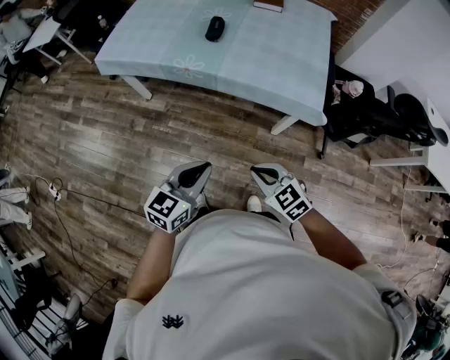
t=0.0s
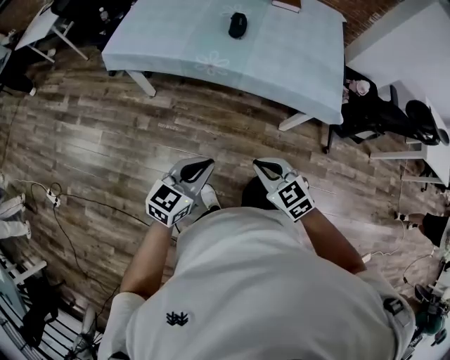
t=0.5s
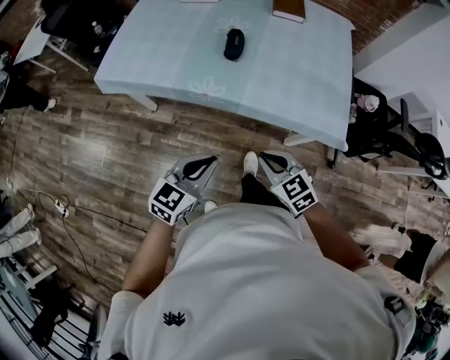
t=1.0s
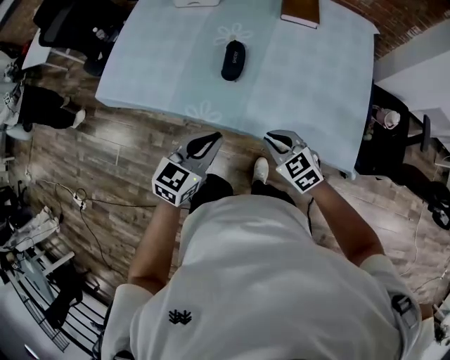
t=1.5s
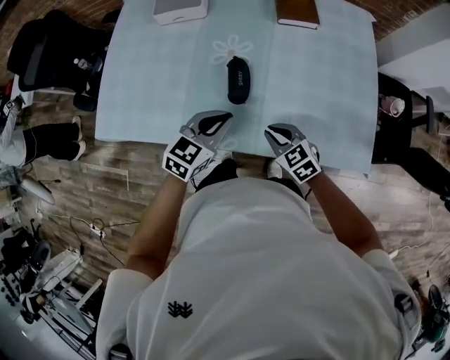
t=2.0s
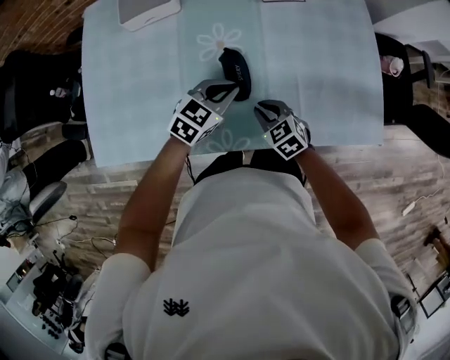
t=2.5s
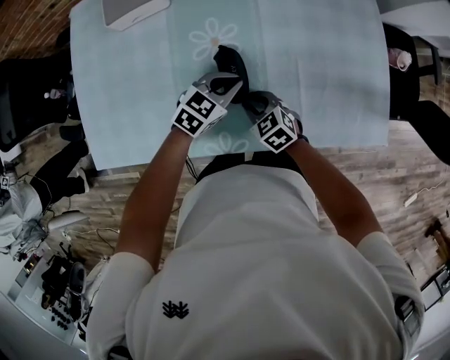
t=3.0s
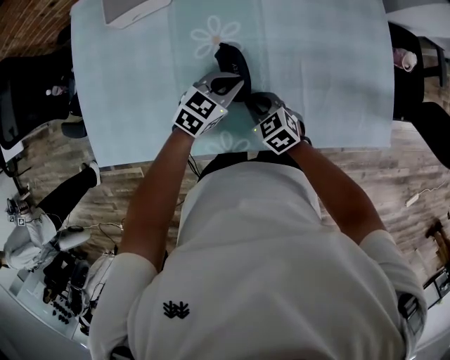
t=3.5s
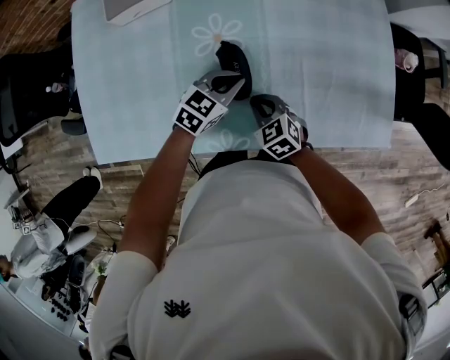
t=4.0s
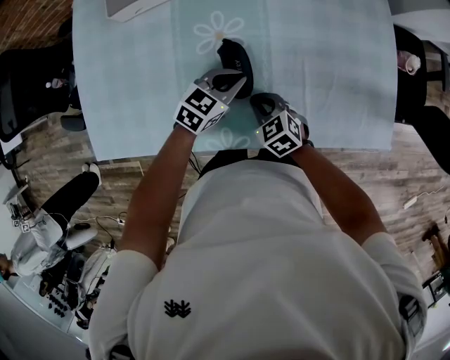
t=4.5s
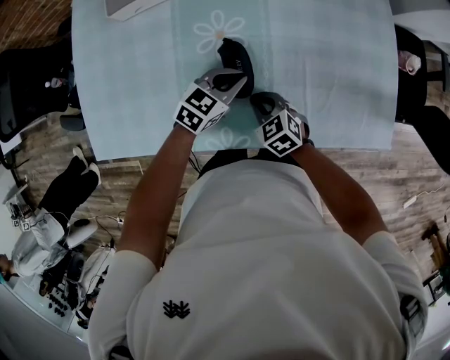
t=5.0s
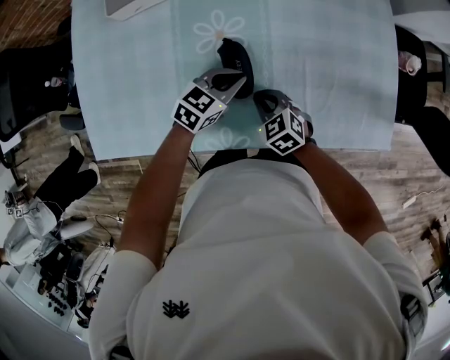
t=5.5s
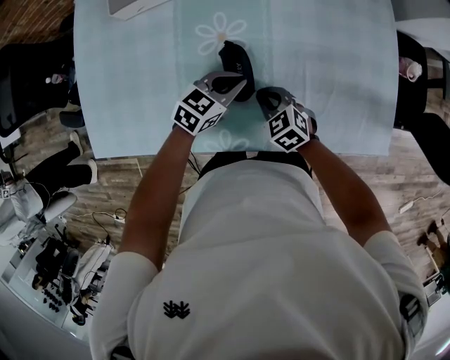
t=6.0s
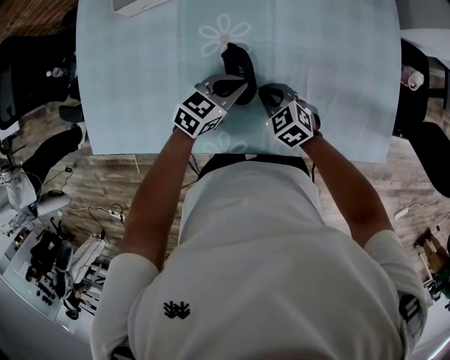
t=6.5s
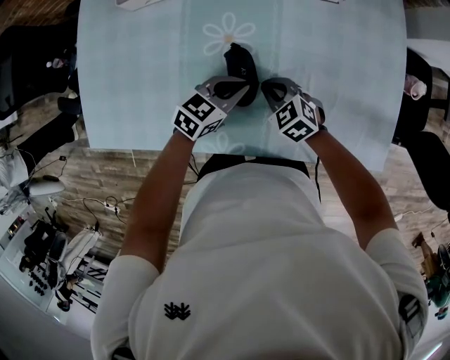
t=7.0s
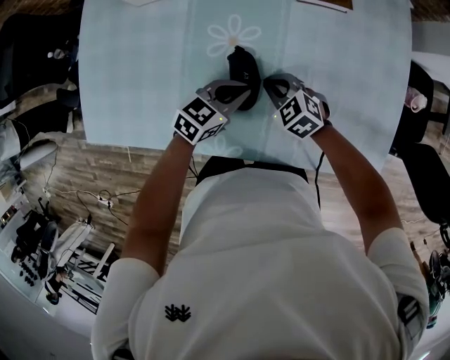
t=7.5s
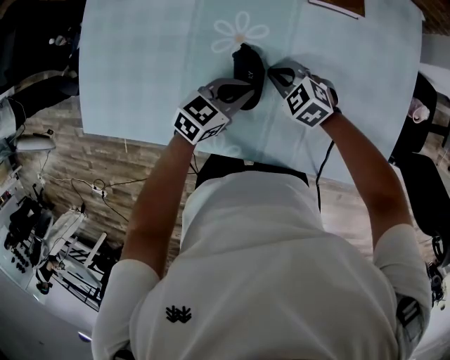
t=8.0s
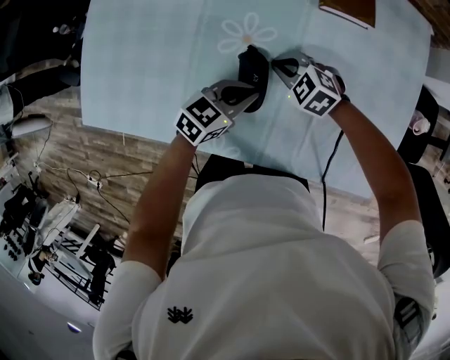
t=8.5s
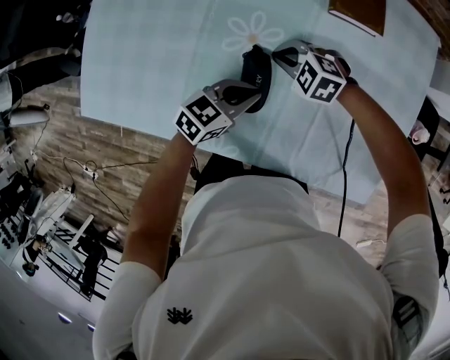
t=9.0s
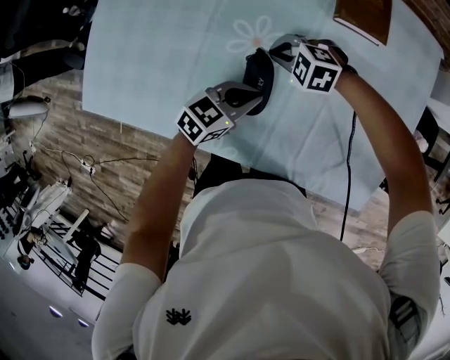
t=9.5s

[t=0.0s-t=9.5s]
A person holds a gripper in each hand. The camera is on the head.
t=0.0s to t=2.0s: The two grippers travel together, forward, approximately 50 cm. The left gripper turns by some 20 degrees.
t=2.0s to t=4.0s: The right gripper is displaced downward, forward and to the left by about 15 cm; the left gripper is displaced downward and forward by some 15 cm, and swivels some 20 degrees.
t=4.0s to t=5.5s: Both grippers stay about where they are.
t=5.5s to t=7.5s: The right gripper moves forward, some 10 cm.
t=7.5s to t=9.5s: The right gripper changes place by approximately 10 cm, and swivels approximately 40 degrees.

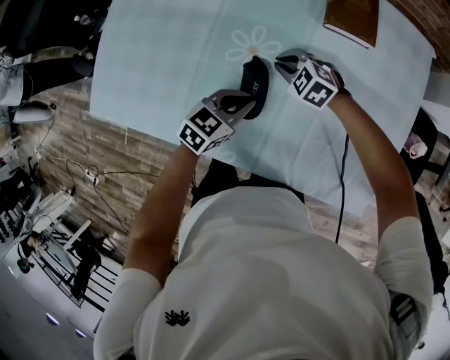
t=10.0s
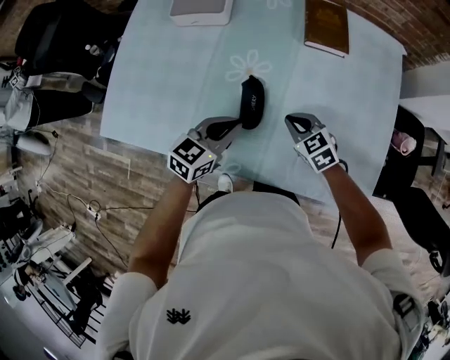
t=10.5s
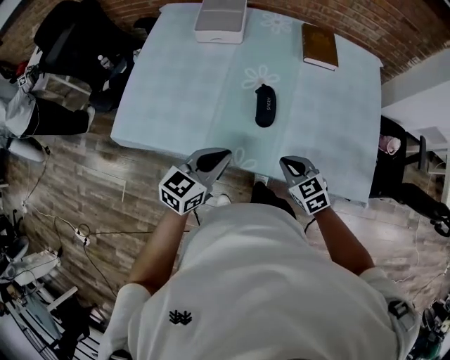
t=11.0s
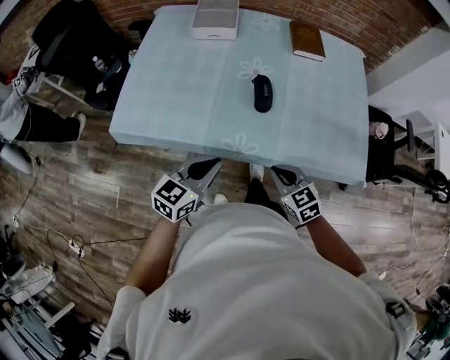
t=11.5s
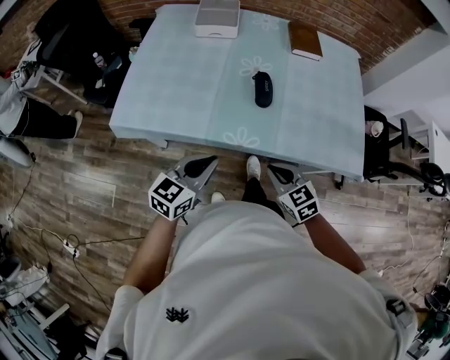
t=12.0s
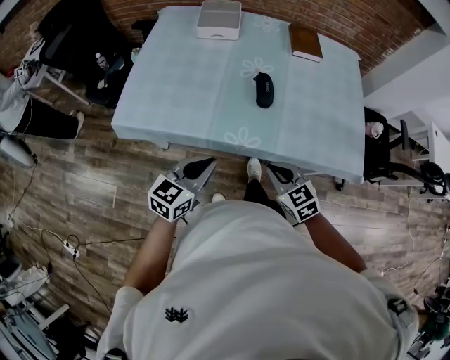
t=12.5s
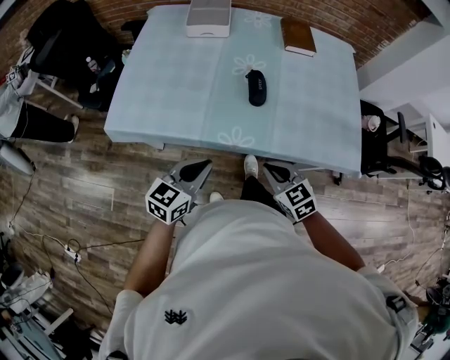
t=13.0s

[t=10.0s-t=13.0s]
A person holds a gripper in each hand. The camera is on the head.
t=10.0s to t=11.5s: The left gripper moves backward, to the left and upward, some 35 cm; the right gripper heads backward, covering about 40 cm, and rotates roughly 40 degrees.
t=11.5s to t=13.0s: The grippers move only a little.

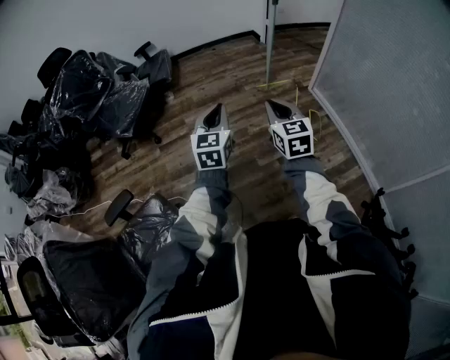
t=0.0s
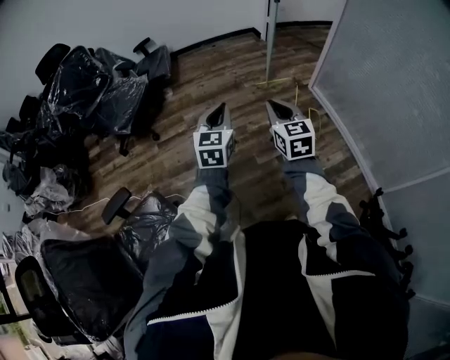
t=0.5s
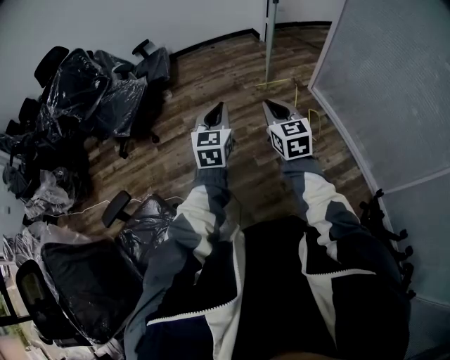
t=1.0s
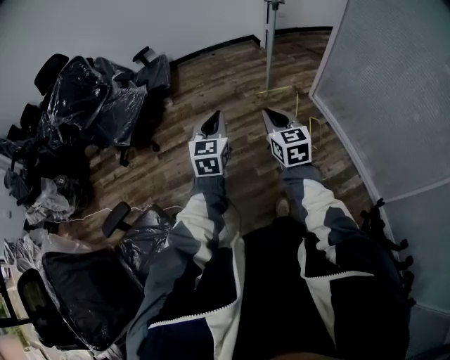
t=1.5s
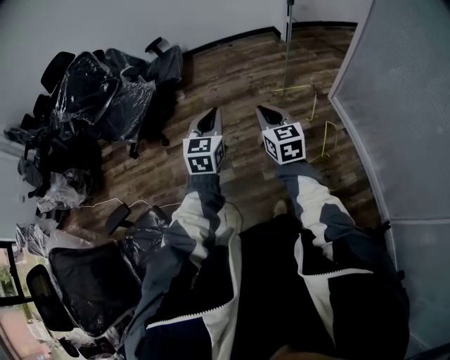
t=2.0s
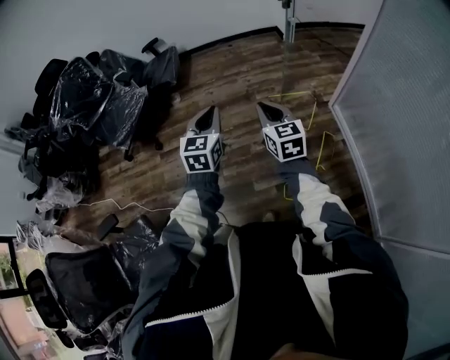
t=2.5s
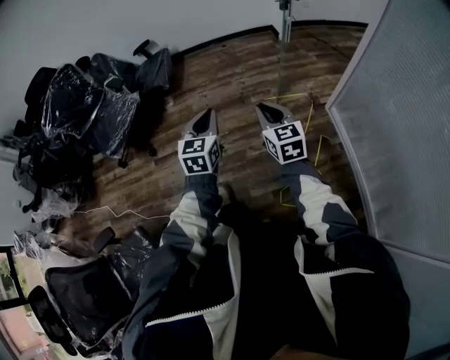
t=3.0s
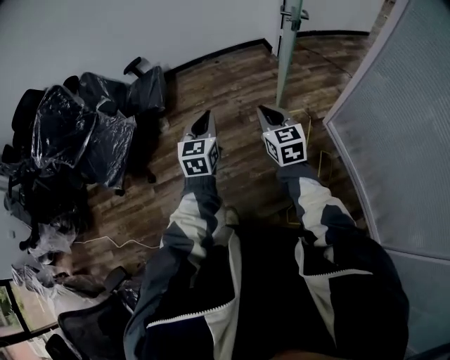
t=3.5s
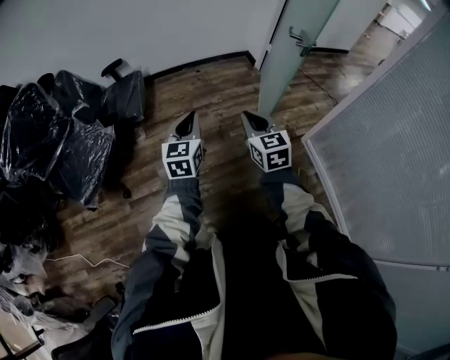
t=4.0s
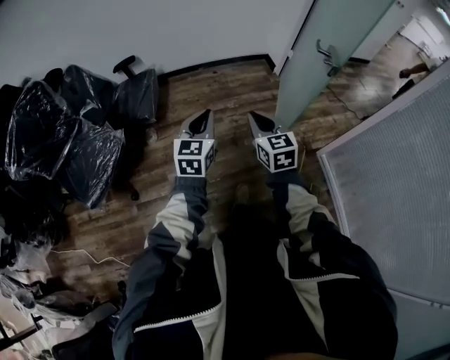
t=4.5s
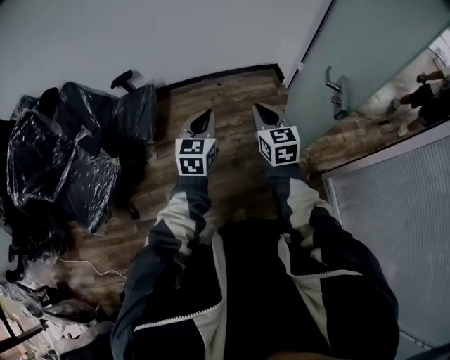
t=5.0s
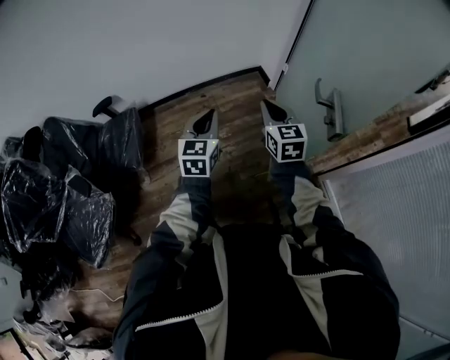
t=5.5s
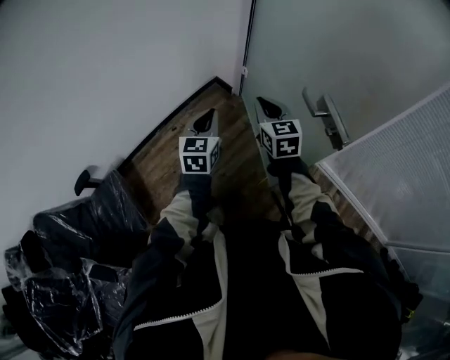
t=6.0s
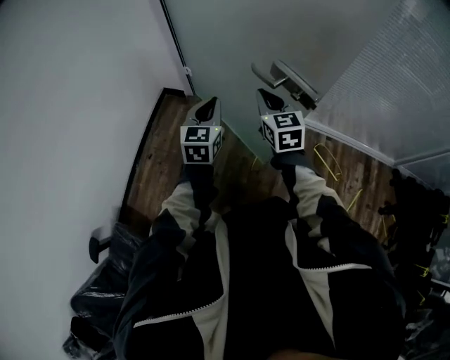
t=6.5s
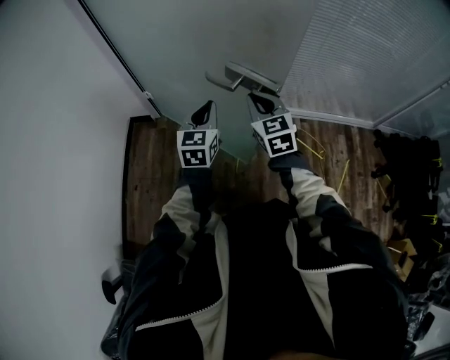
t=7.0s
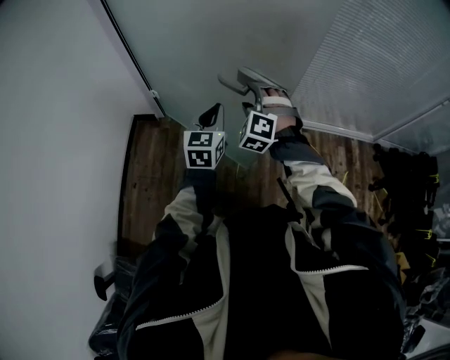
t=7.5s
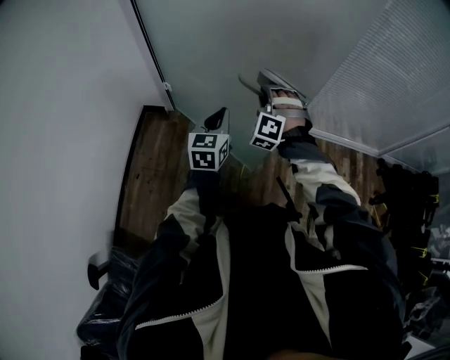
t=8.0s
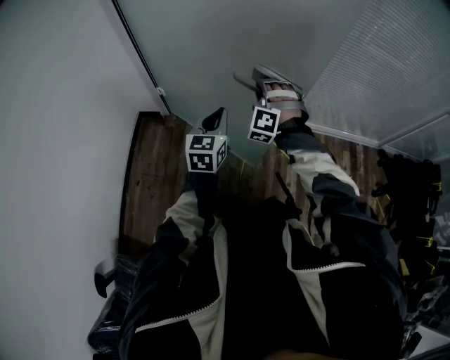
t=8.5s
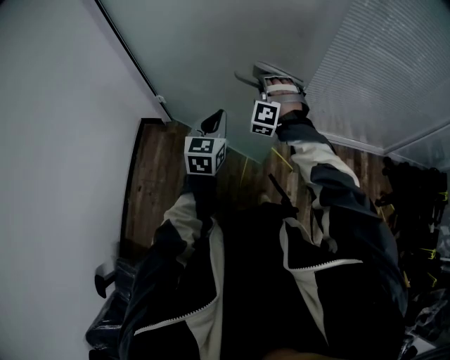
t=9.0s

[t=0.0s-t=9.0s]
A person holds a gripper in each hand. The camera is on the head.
t=0.0s to t=2.0s: The two grippers go roughly 15 cm forward.
t=2.0s to t=4.5s: The pair of grippers is taken forward, roughly 50 cm.
t=4.5s to t=7.0s: The pair of grippers is taken some 50 cm. The right gripper swivels approximately 70 degrees, while the left gripper changes its angle by about 70 degrees.
t=7.0s to t=9.0s: The left gripper moves forward, some 5 cm. Meanwhile the right gripper shifts about 15 cm forward, twists about 70 degrees counterclockwise, seen from behind, and opens its fingers.

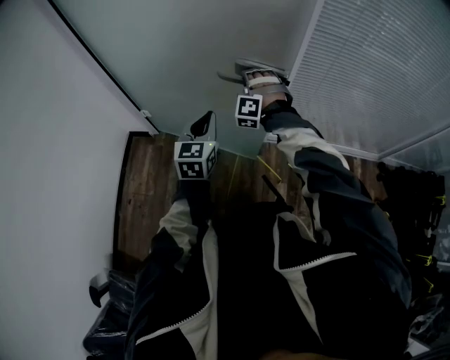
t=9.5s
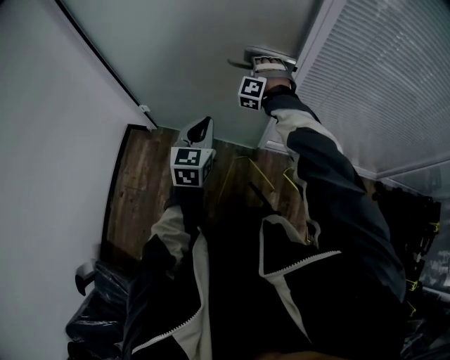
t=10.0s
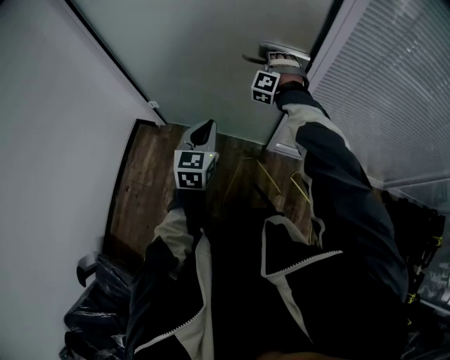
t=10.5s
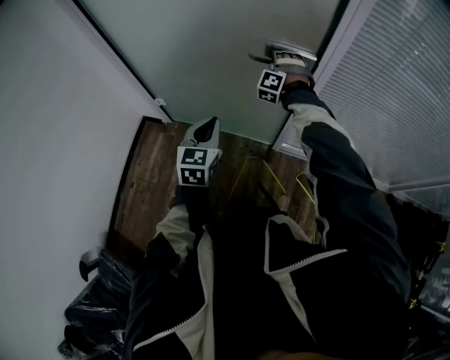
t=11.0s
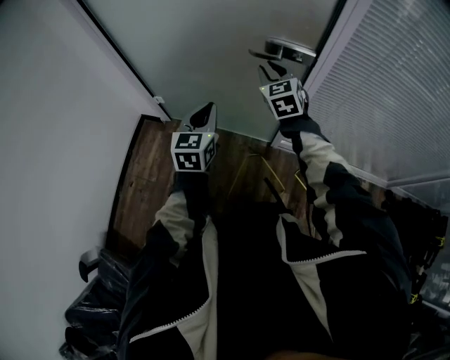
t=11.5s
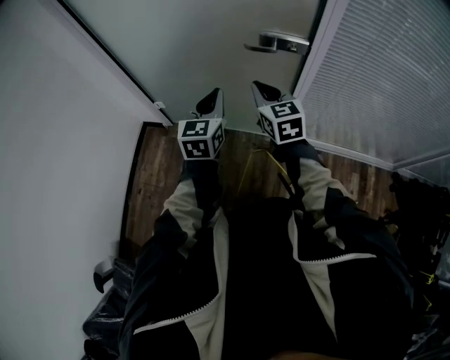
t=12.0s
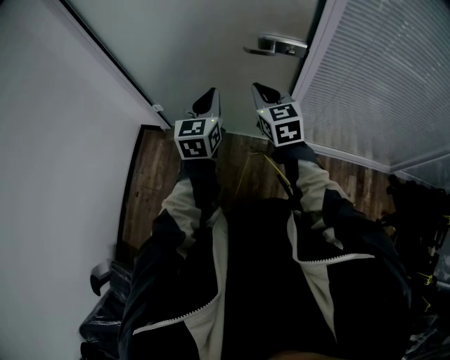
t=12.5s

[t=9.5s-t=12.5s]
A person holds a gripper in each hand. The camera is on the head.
t=9.5s to t=11.0s: The right gripper goes some 15 cm forward.
t=11.0s to t=12.5s: The left gripper is displaced upward by roughly 5 cm; the right gripper heads backward, covering approximately 20 cm, twists about 80 degrees clockwise, seen from behind, and closes.

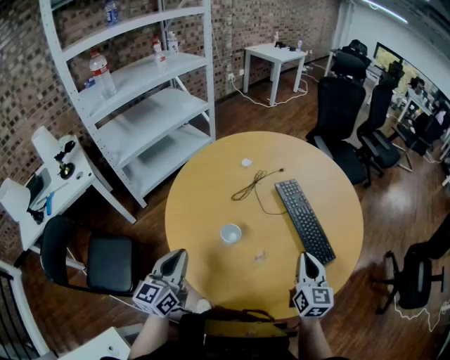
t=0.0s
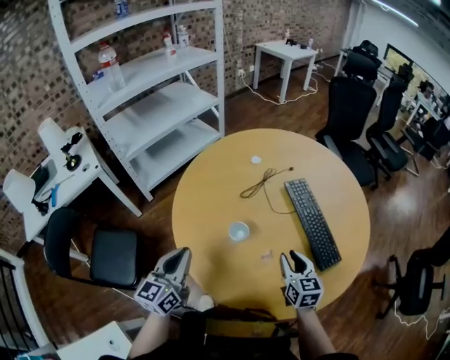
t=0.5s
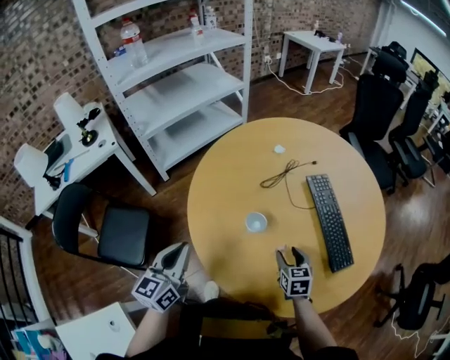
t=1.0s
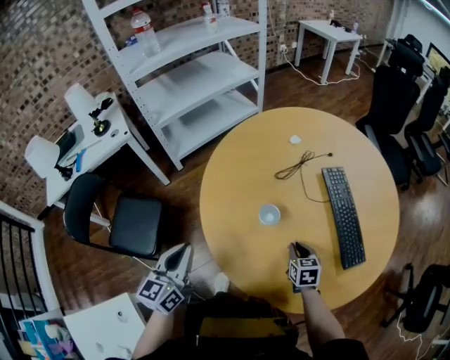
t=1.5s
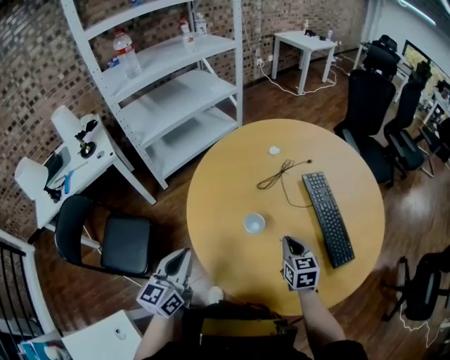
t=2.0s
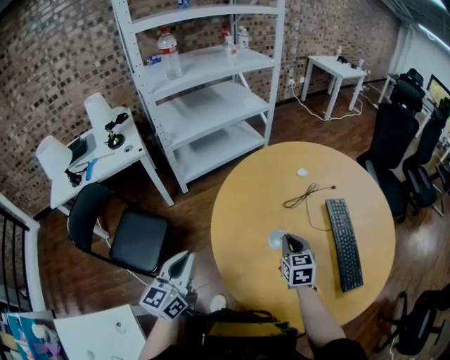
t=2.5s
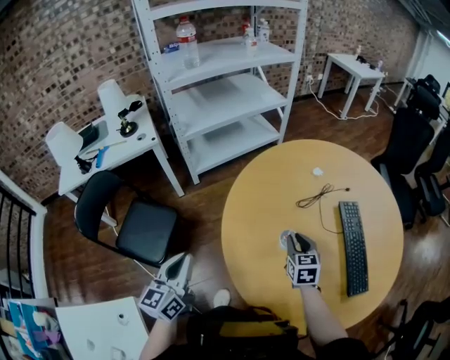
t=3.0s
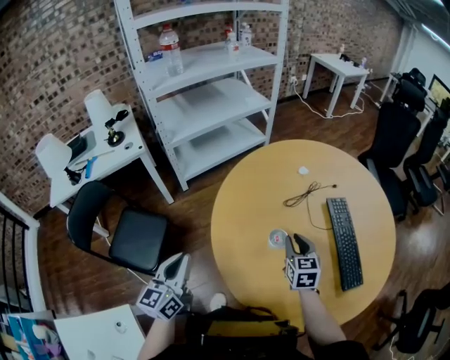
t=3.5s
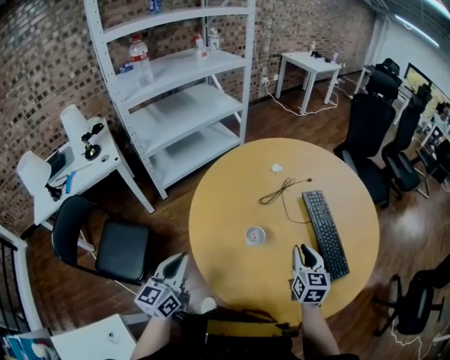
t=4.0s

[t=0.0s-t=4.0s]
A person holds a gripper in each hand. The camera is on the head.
t=0.0s to t=2.0s: The right gripper goes approximately 15 cm to the left, downward and forward, turns by about 30 degrees, and opens, then closes once more.
t=2.0s to t=4.0s: The right gripper travels upward by approximately 5 cm, moves about 10 cm to the left and comes back, and opens its fingers. Meanwhile the left gripper moves about 10 cm to the left and comes back.
